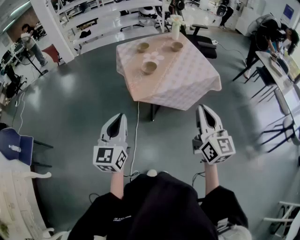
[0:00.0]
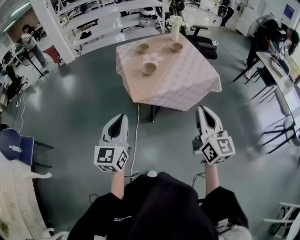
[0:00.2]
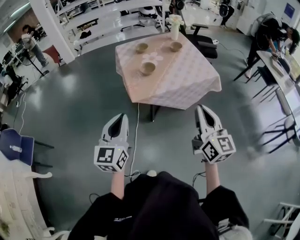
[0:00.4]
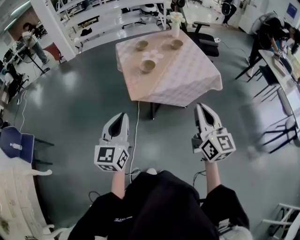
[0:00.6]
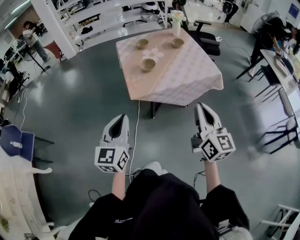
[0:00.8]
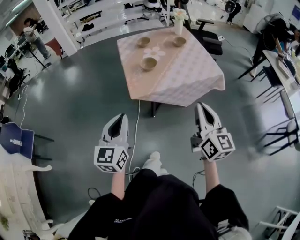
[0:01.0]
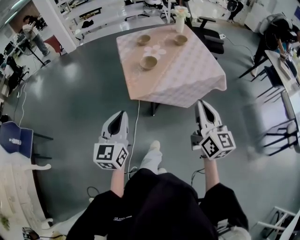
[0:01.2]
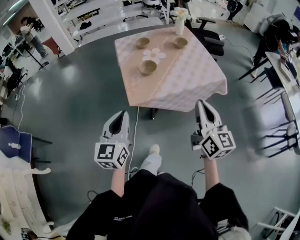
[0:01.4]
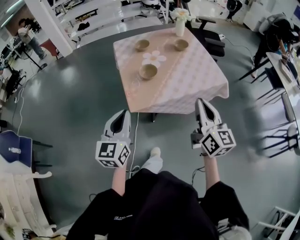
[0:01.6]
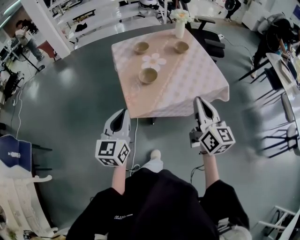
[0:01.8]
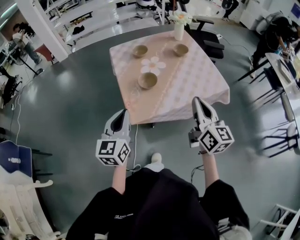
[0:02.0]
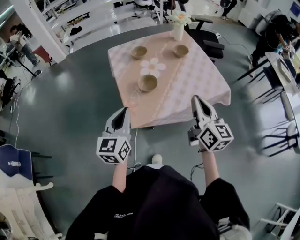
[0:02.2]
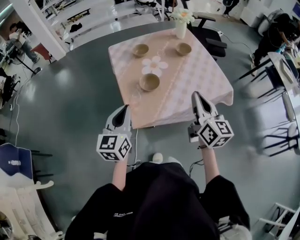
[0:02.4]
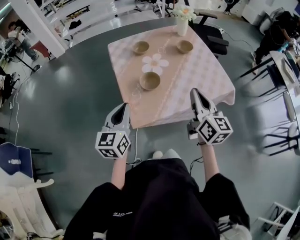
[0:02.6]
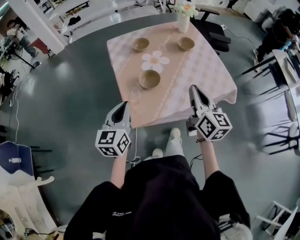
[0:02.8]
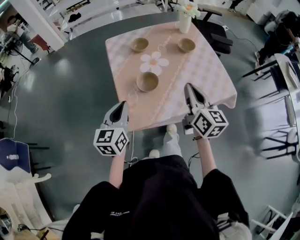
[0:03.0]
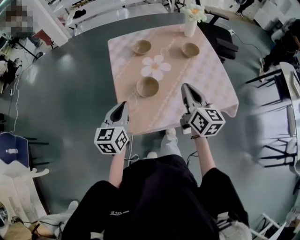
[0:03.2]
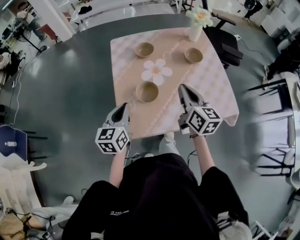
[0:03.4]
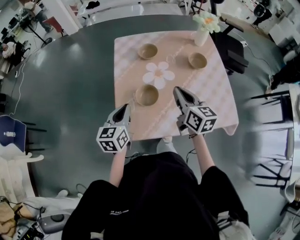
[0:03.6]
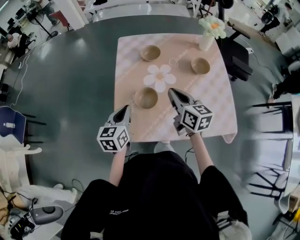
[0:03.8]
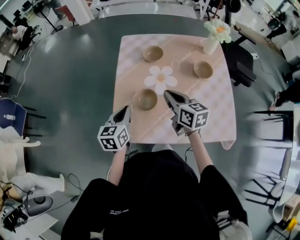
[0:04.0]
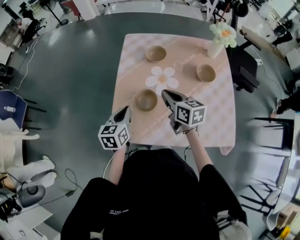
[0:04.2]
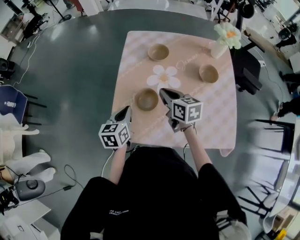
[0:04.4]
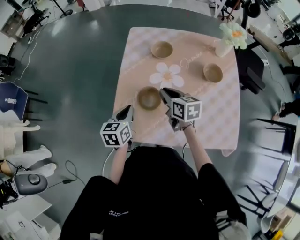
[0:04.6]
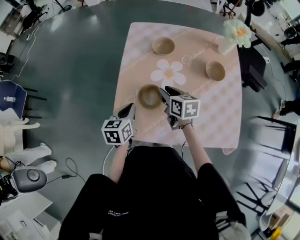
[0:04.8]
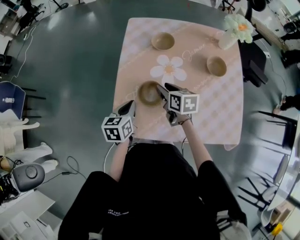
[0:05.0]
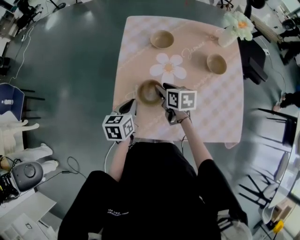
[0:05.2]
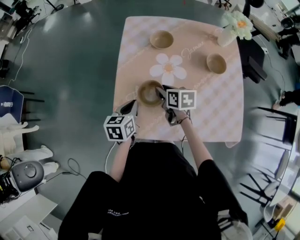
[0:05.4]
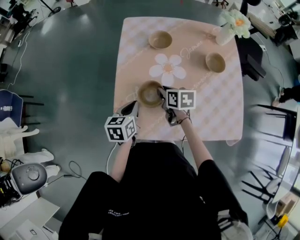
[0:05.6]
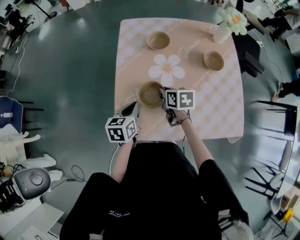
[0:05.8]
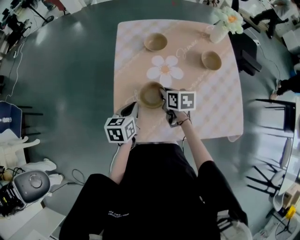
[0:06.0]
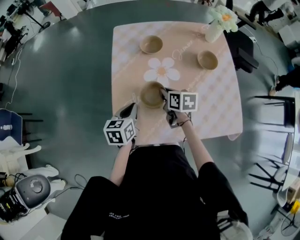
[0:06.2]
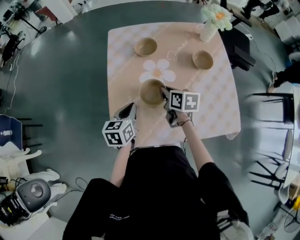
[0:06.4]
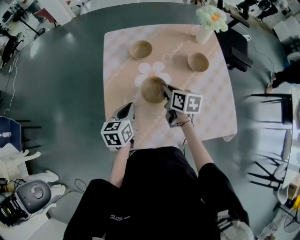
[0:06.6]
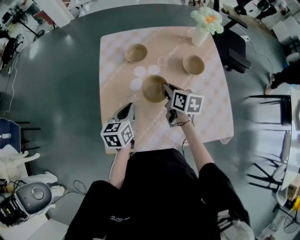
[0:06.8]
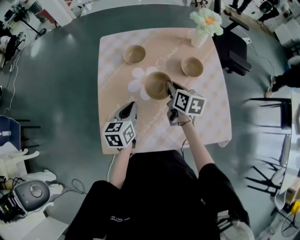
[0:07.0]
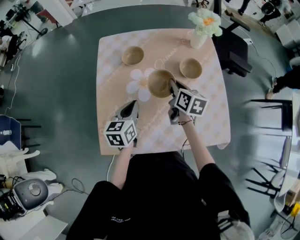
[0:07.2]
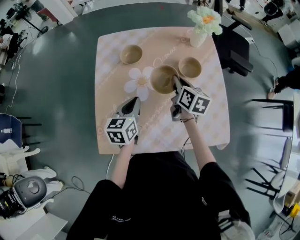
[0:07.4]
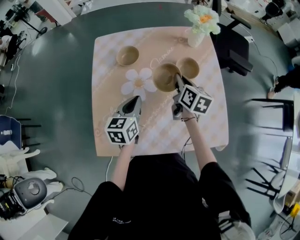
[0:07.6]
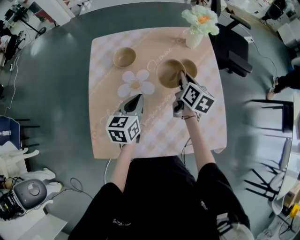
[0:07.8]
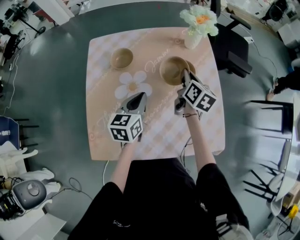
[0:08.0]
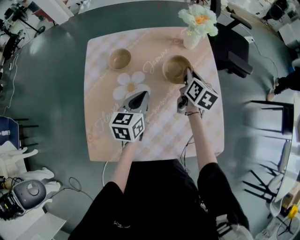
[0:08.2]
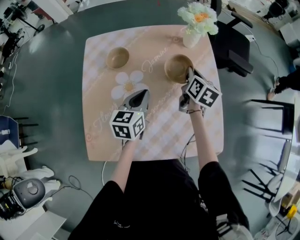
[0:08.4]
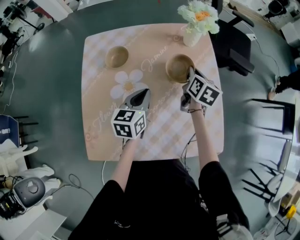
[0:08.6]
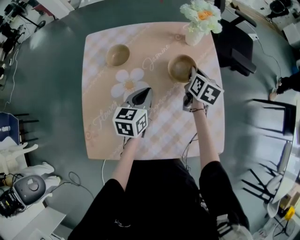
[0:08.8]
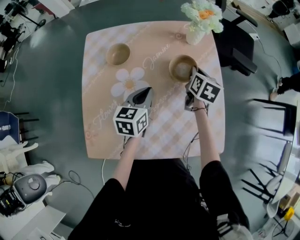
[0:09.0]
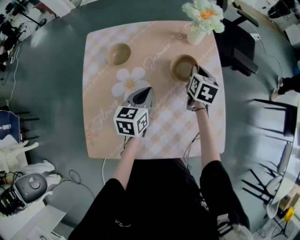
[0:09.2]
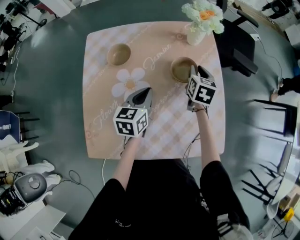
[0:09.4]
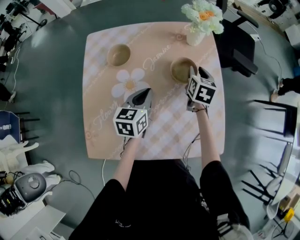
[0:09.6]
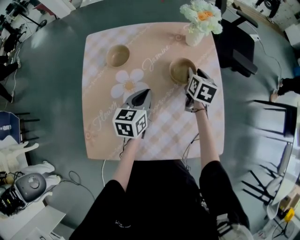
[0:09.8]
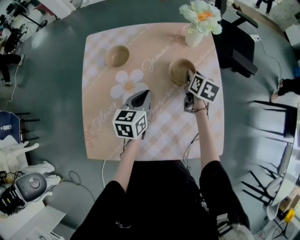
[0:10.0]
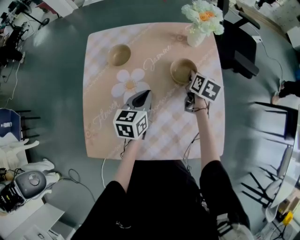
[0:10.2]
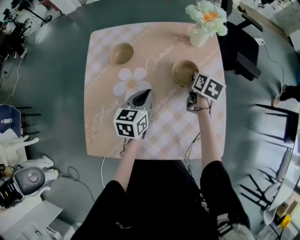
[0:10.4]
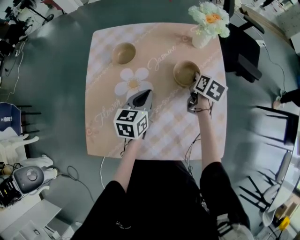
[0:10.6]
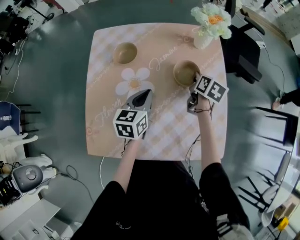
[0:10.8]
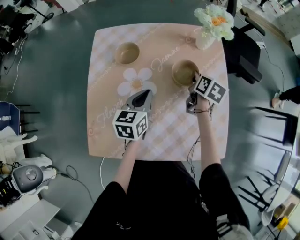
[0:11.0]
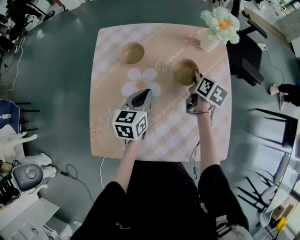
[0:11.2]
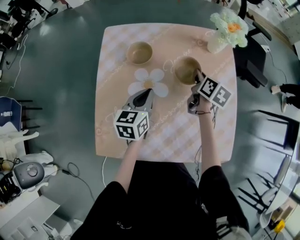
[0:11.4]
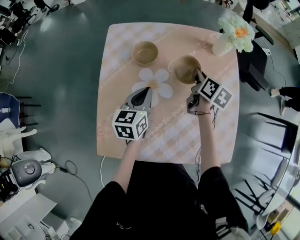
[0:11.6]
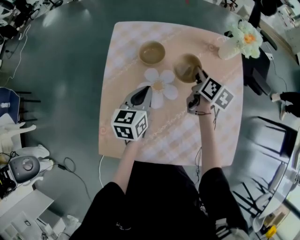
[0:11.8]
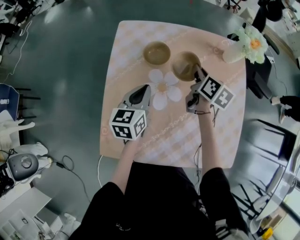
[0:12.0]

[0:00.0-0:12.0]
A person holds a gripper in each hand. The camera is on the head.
0:00.0 to 0:01.6: Both grippers travel together forward, roughly 15 cm.
0:01.6 to 0:03.0: Both grippers travel together forward, about 20 cm.
0:03.0 to 0:04.4: The left gripper goes roughly 10 cm downward, and swivels some 30 degrees; the right gripper moves roughly 25 cm, and rotates about 50 degrees.
0:04.4 to 0:06.0: The right gripper goes approximately 10 cm downward, changes its angle by approximately 20 degrees, and opens, then closes again.
0:06.0 to 0:07.6: The grippers both shift to the right, forward and upward by roughly 20 cm. The right gripper swivels roughly 30 degrees.
0:07.6 to 0:09.0: Both grippers move to the right and forward, some 10 cm.
0:09.0 to 0:10.4: The right gripper opens, then closes once more.
0:10.4 to 0:12.0: The grippers both shift to the left by roughly 15 cm.

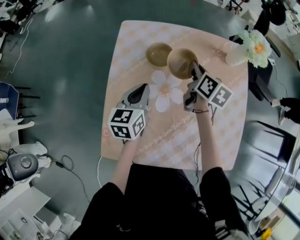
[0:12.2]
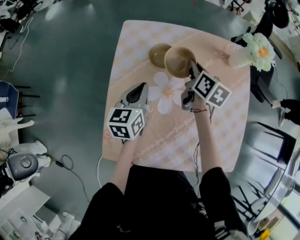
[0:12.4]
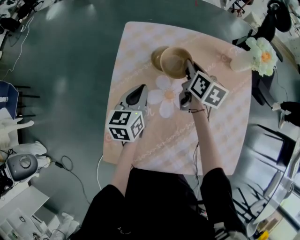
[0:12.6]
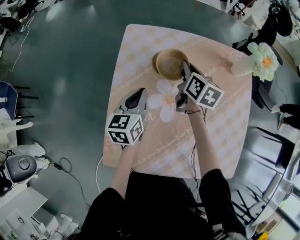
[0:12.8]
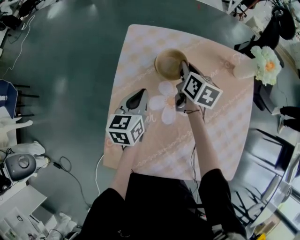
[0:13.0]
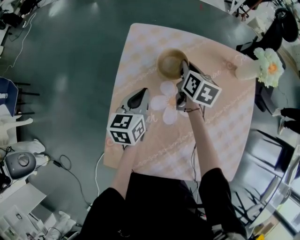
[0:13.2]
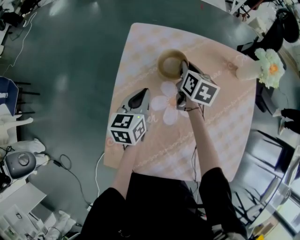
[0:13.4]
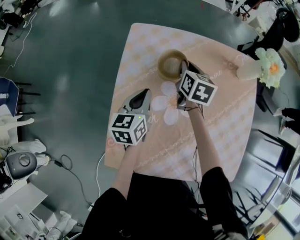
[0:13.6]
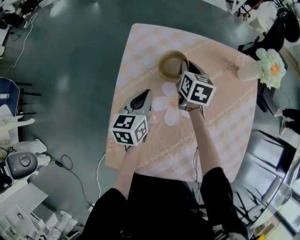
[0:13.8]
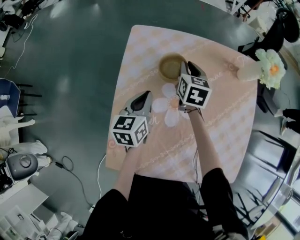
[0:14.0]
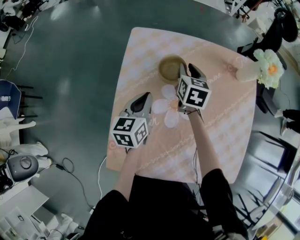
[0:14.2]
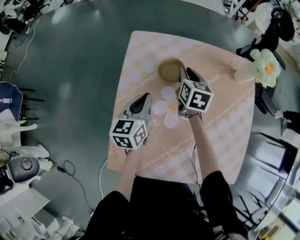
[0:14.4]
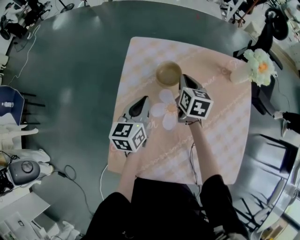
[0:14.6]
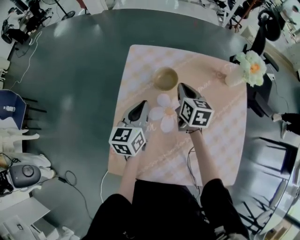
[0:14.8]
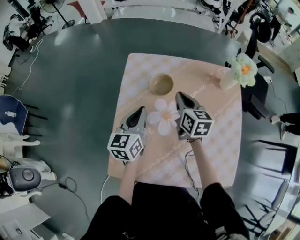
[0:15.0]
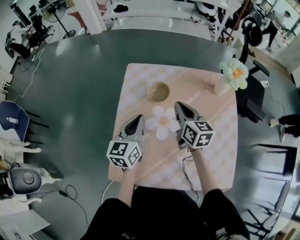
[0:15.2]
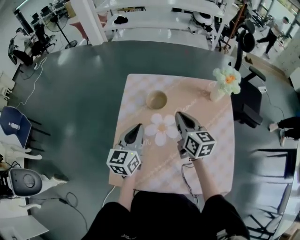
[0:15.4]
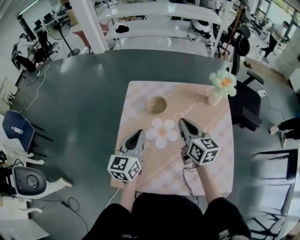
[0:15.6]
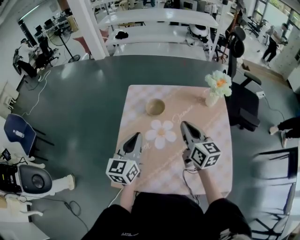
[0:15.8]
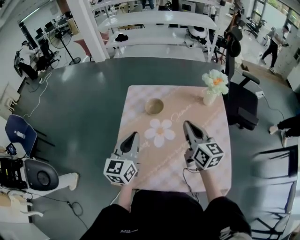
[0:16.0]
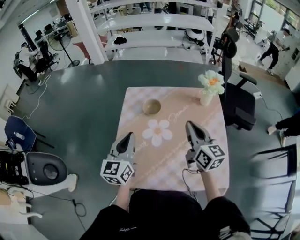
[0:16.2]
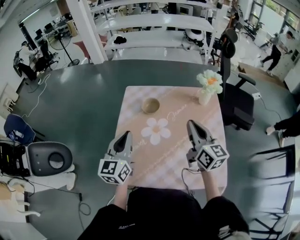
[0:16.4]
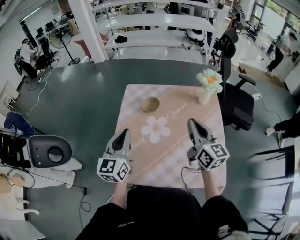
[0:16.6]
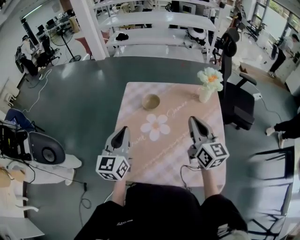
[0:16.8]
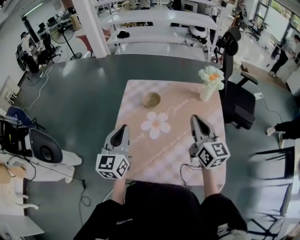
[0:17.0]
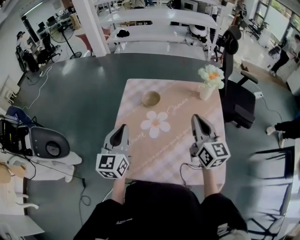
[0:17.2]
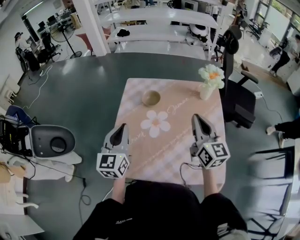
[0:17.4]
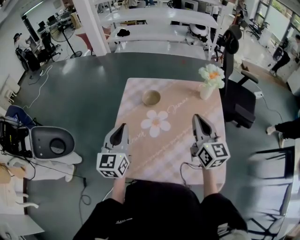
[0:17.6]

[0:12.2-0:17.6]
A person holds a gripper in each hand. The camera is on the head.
0:12.2 to 0:13.6: The right gripper shifts about 10 cm to the left and forward. The left gripper ends up roughly 5 cm from where it was.
0:13.6 to 0:15.0: The right gripper heads backward and upward, covering roughly 10 cm. The left gripper is displaced upward by some 10 cm.
0:15.0 to 0:16.2: The right gripper heads backward, upward and to the right, covering approximately 25 cm, and swivels approximately 20 degrees. Meanwhile the left gripper shifts some 15 cm upward and backward.
0:16.2 to 0:17.6: The grippers move only a little.

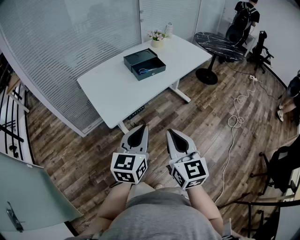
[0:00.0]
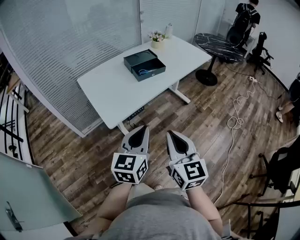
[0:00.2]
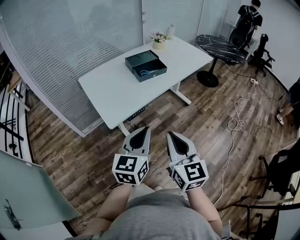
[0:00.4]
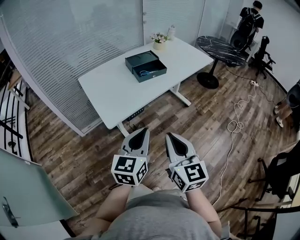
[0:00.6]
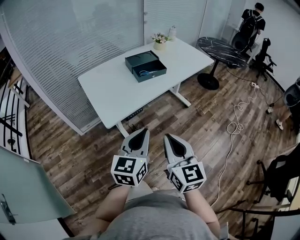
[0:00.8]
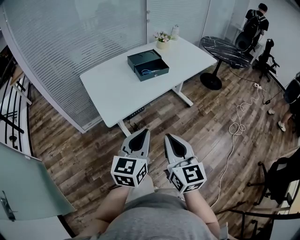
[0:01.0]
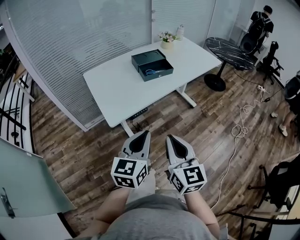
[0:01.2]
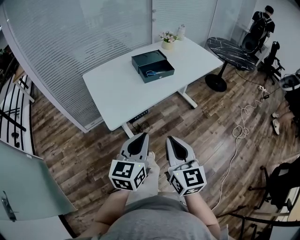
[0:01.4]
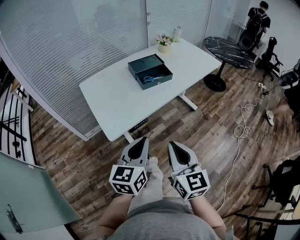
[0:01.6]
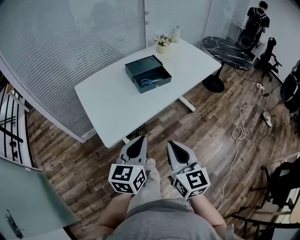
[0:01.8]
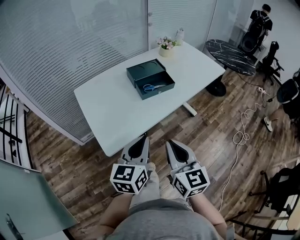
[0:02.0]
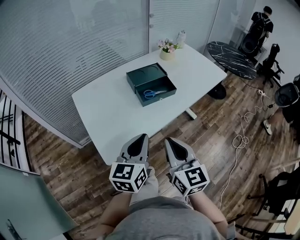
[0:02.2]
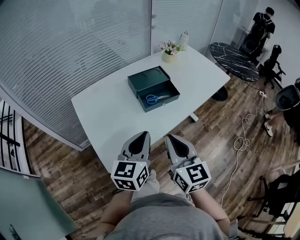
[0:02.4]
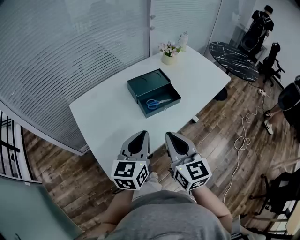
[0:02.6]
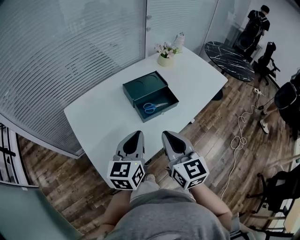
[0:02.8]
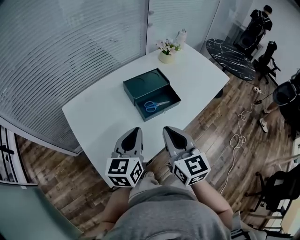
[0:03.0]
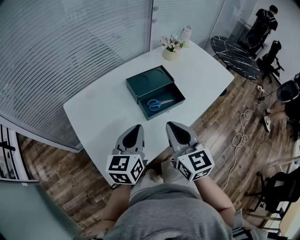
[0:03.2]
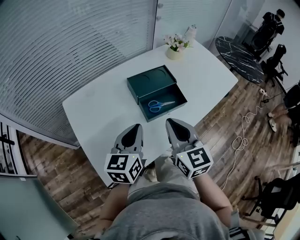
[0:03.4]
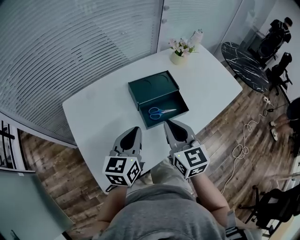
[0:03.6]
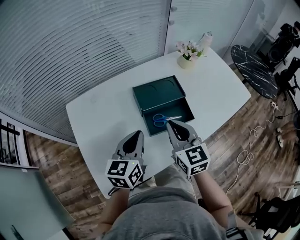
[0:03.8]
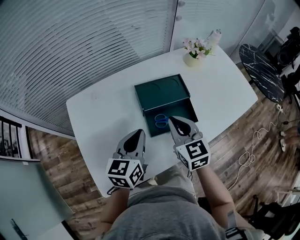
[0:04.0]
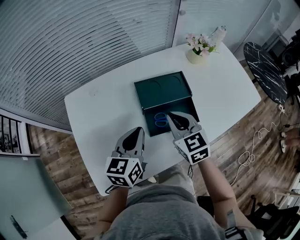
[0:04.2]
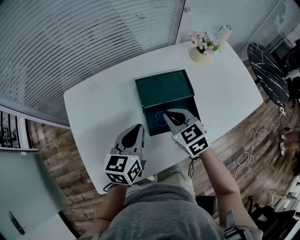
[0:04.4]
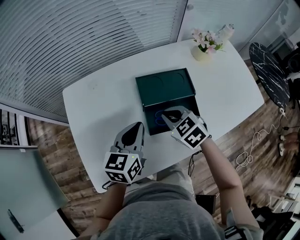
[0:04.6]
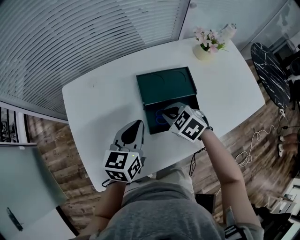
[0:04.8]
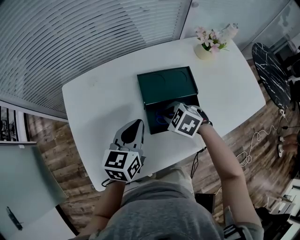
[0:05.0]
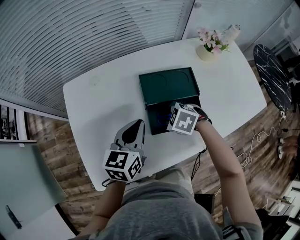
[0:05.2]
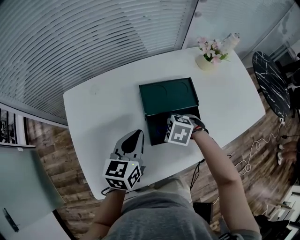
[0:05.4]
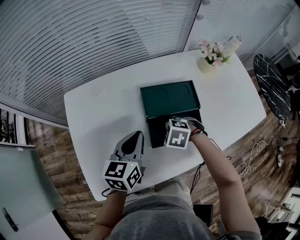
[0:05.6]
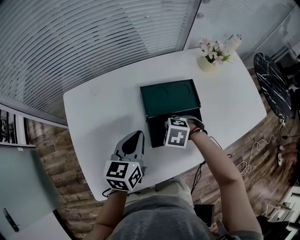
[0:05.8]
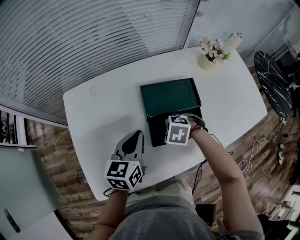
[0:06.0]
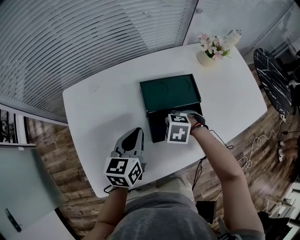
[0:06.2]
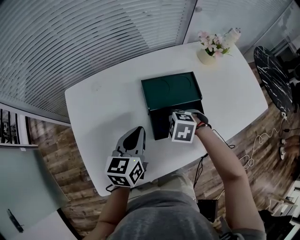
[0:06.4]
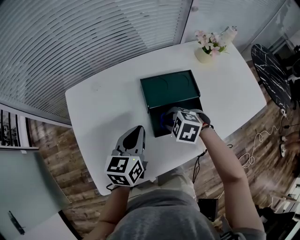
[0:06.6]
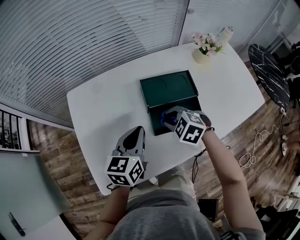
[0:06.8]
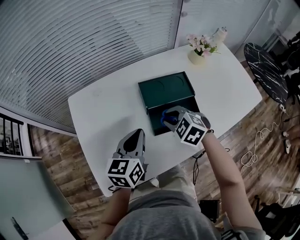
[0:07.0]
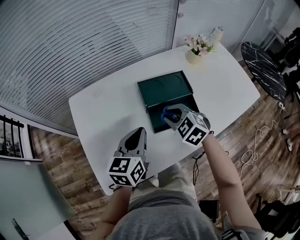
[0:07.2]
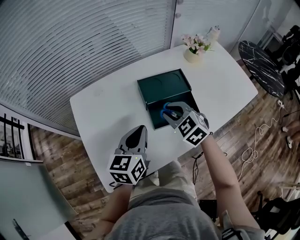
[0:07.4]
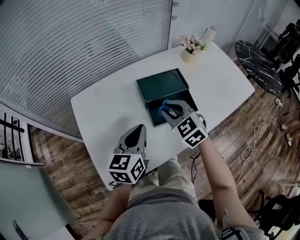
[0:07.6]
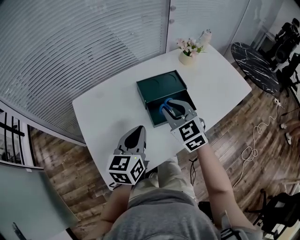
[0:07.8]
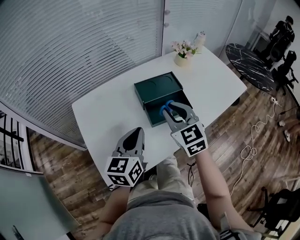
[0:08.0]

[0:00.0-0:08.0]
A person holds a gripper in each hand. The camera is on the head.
0:00.0 to 0:01.6: The grippers both shift forward by roughly 5 cm.
0:01.6 to 0:03.2: Both grippers move forward, some 35 cm.
0:03.2 to 0:04.8: The left gripper changes place by approximately 15 cm; the right gripper moves some 30 cm, and tips its fingers downward by some 40 degrees.
0:04.8 to 0:06.4: The right gripper changes place by approximately 5 cm, and rotates some 30 degrees.
0:06.4 to 0:08.0: The right gripper goes some 20 cm upward, and tilts its fingers roughly 50 degrees upward, while the left gripper moves about 15 cm.
